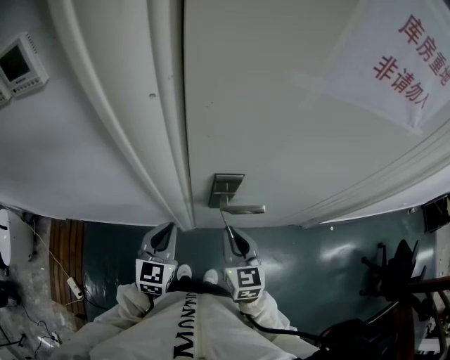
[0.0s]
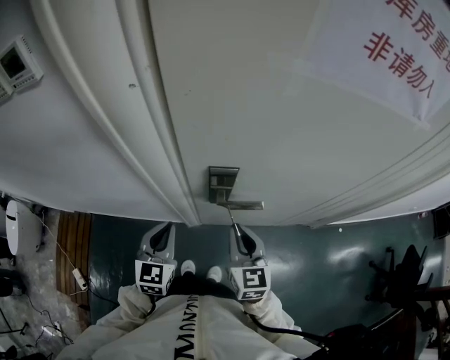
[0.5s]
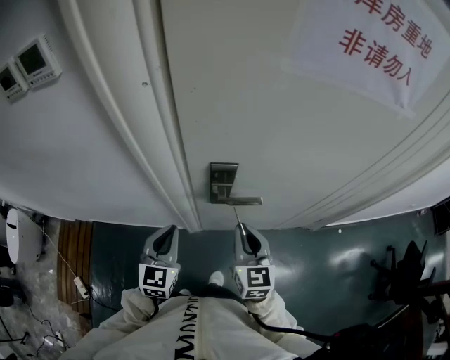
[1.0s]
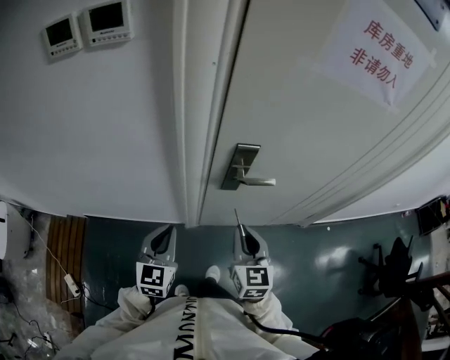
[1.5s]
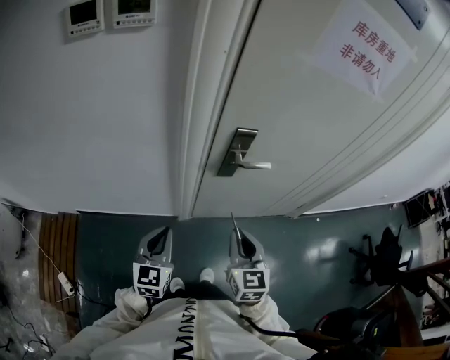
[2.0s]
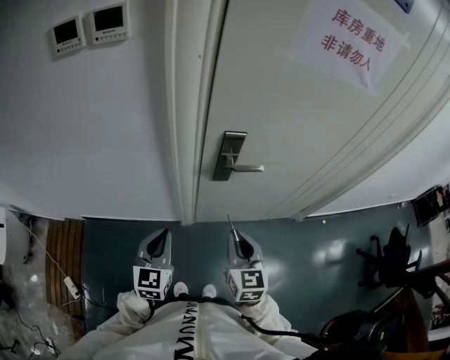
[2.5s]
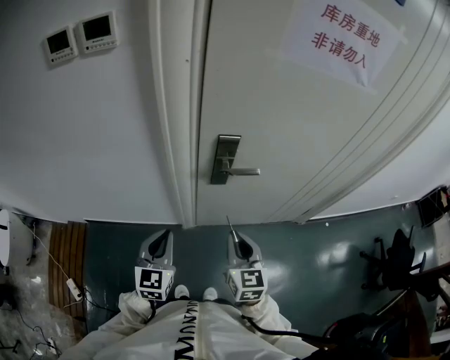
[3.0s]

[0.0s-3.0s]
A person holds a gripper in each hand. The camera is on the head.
0.0s to 1.5s: The right gripper goes some 10 cm backward. The left gripper shifts about 10 cm backward and to the left.
1.5s to 3.0s: The right gripper is displaced backward by some 5 cm; the left gripper changes place by about 5 cm.

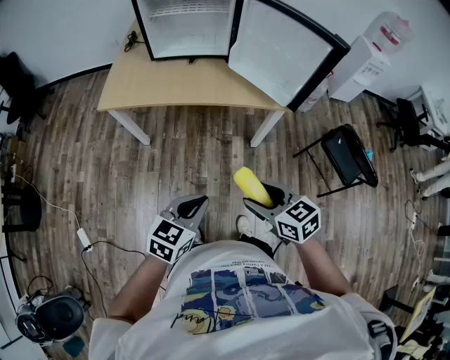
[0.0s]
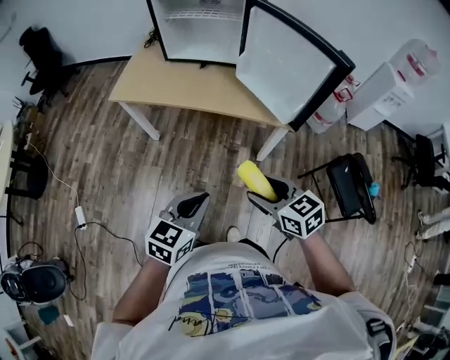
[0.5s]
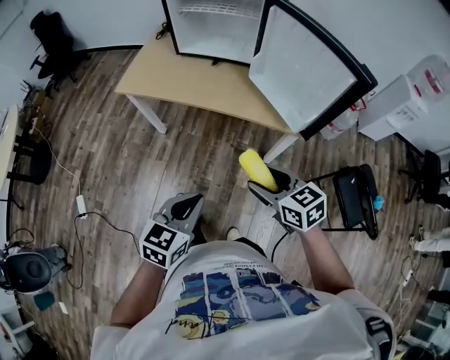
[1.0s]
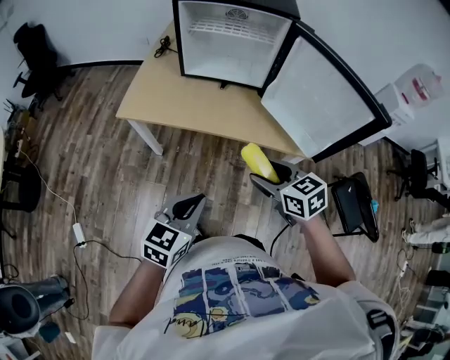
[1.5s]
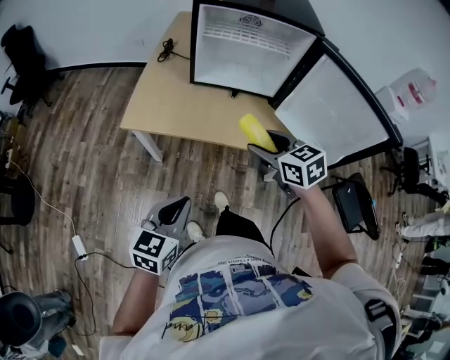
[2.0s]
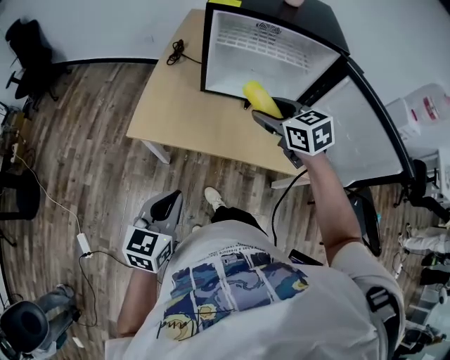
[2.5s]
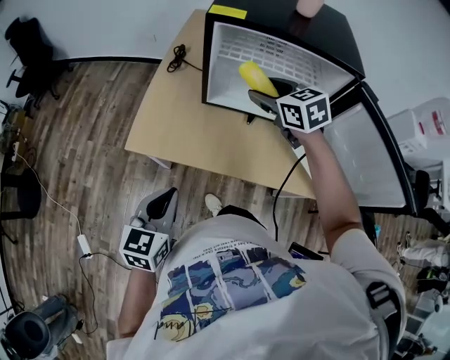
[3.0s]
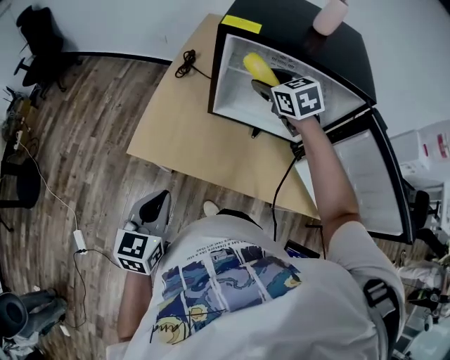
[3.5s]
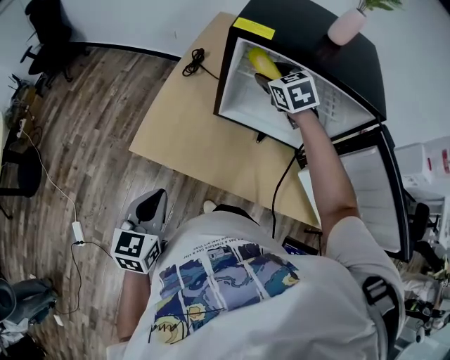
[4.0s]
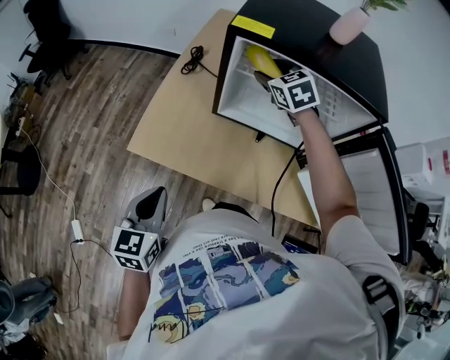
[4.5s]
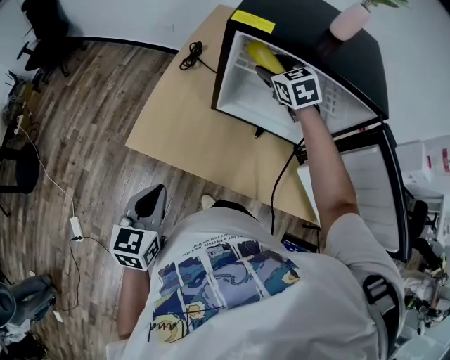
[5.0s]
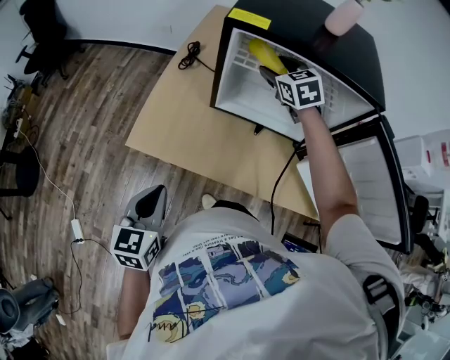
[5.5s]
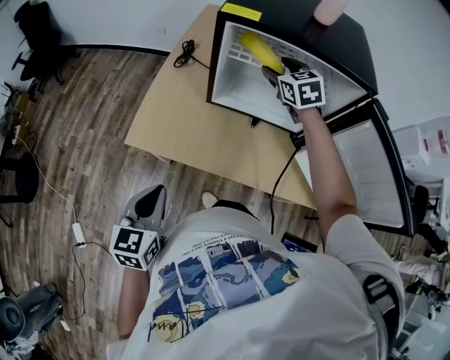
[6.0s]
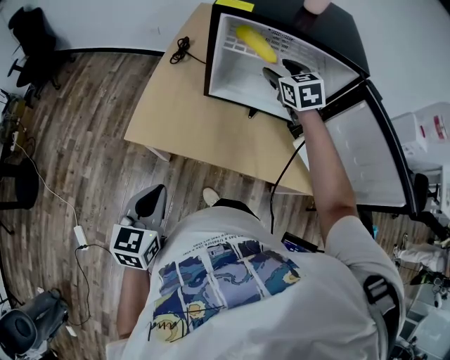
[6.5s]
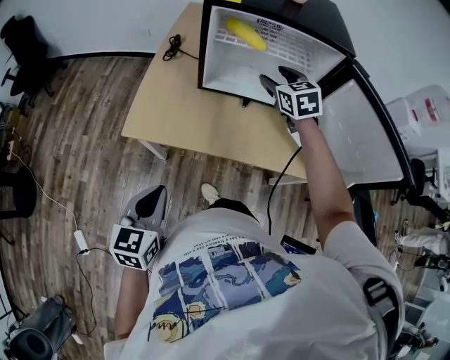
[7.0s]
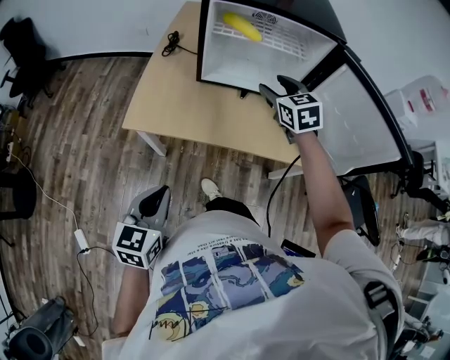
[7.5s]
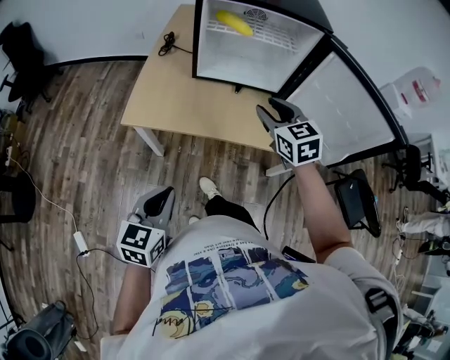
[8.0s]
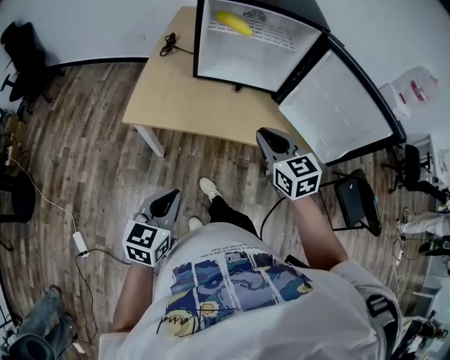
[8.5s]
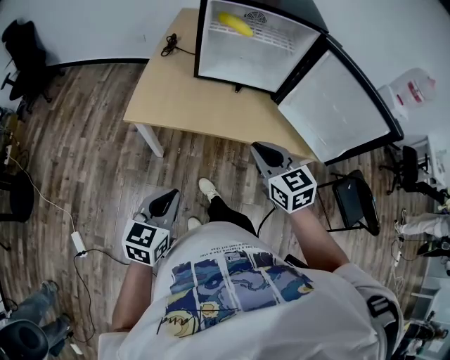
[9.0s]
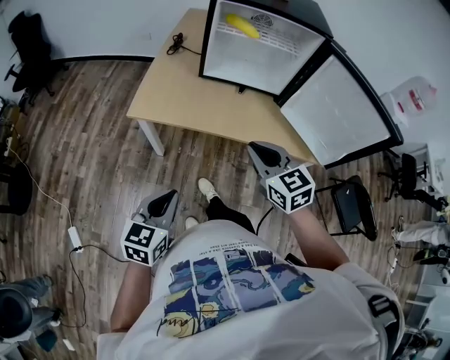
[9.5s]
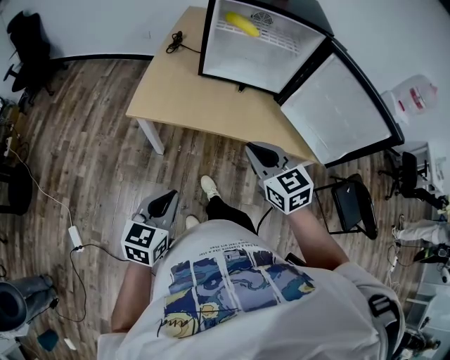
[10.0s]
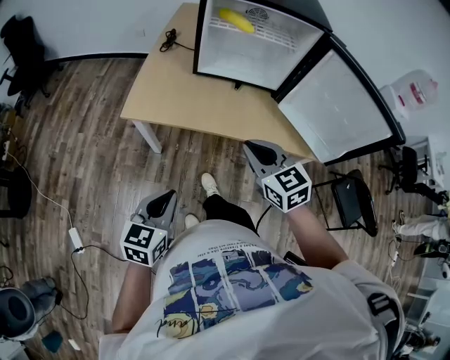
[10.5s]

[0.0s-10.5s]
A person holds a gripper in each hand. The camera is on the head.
0.0s to 2.0s: The left gripper is displaced forward and to the left by about 25 cm; the right gripper goes approximately 35 cm forward.
2.0s to 4.0s: The right gripper travels forward by about 40 cm, and swivels some 20 degrees. The left gripper heads forward, covering approximately 20 cm, and changes its angle by about 20 degrees.
4.0s to 6.5s: The left gripper goes about 5 cm backward. Meanwhile the right gripper goes roughly 10 cm backward and to the right.
6.5s to 8.5s: The right gripper travels backward by some 35 cm, and closes. The left gripper travels backward by about 15 cm.
8.5s to 10.5s: The right gripper changes place by about 5 cm.

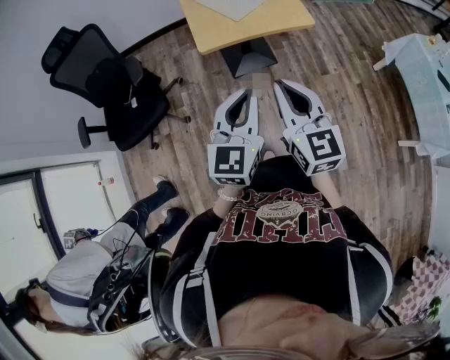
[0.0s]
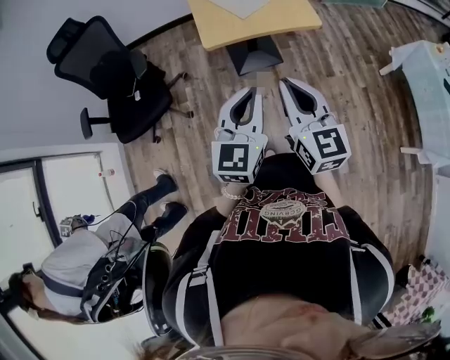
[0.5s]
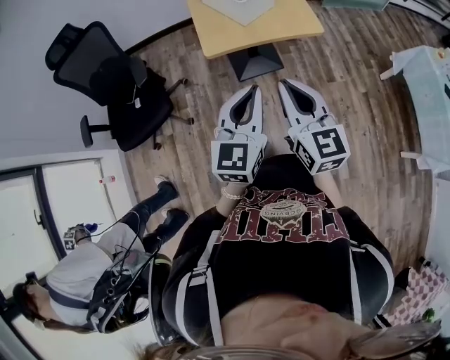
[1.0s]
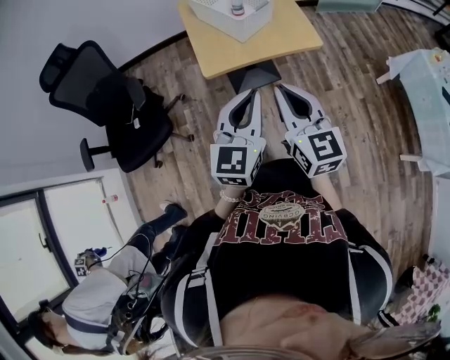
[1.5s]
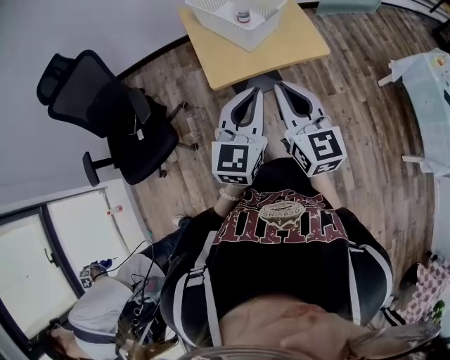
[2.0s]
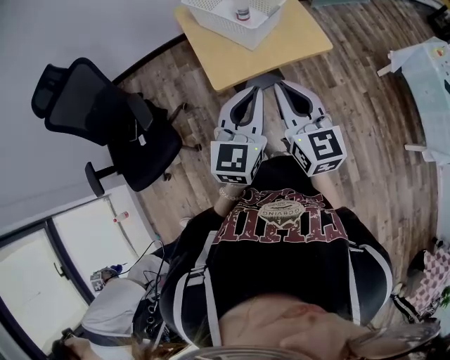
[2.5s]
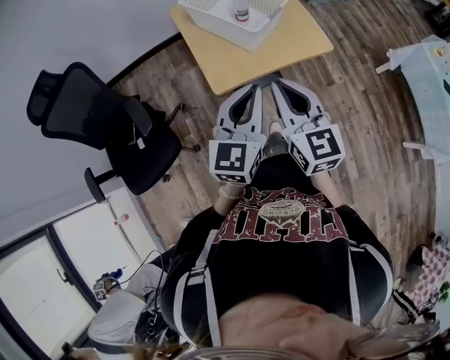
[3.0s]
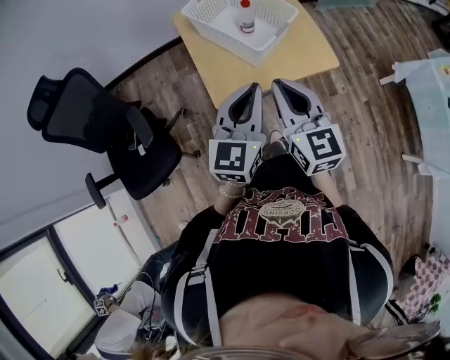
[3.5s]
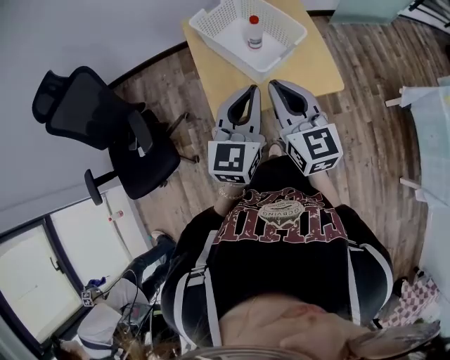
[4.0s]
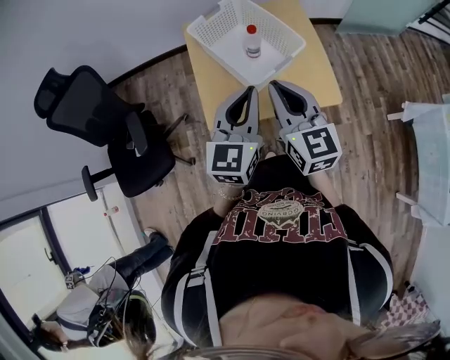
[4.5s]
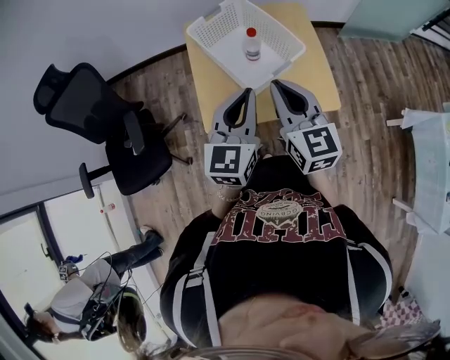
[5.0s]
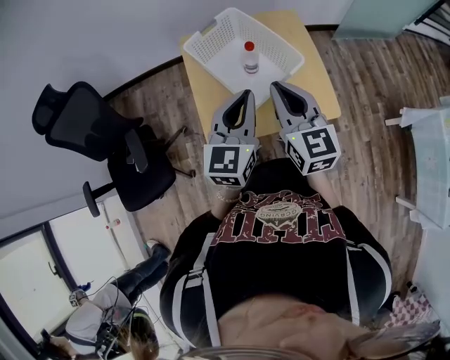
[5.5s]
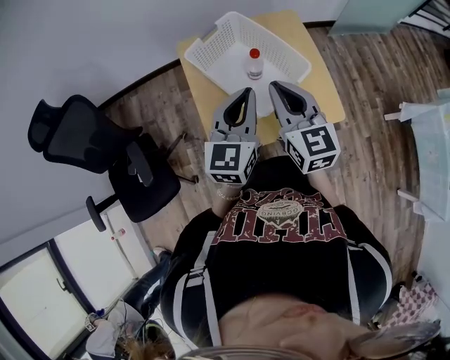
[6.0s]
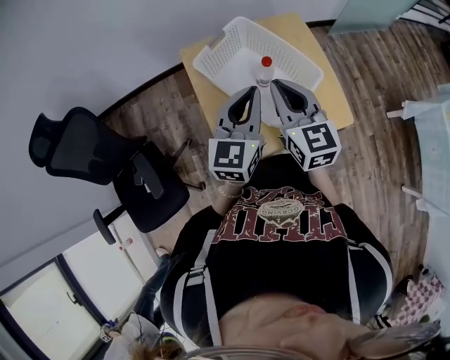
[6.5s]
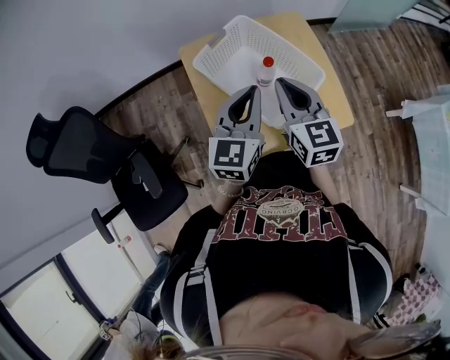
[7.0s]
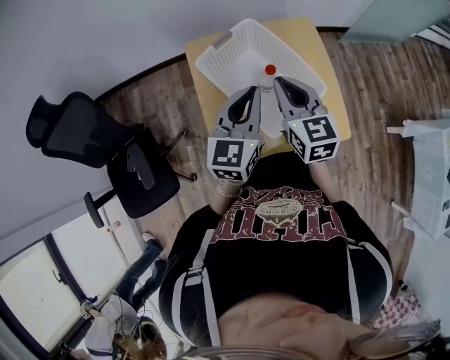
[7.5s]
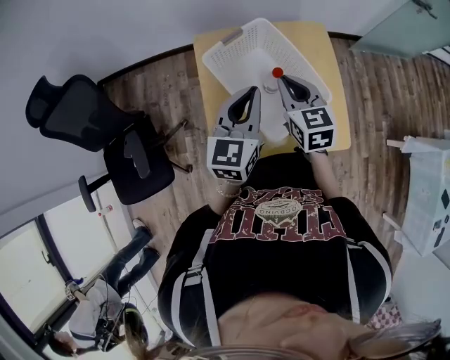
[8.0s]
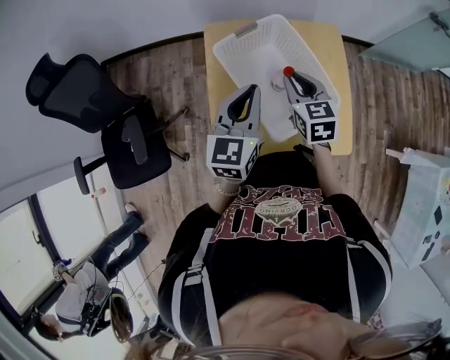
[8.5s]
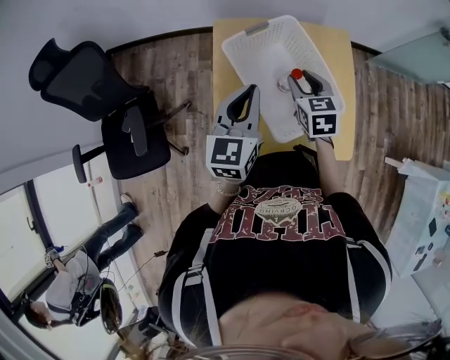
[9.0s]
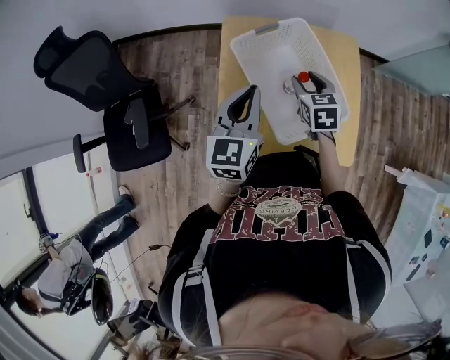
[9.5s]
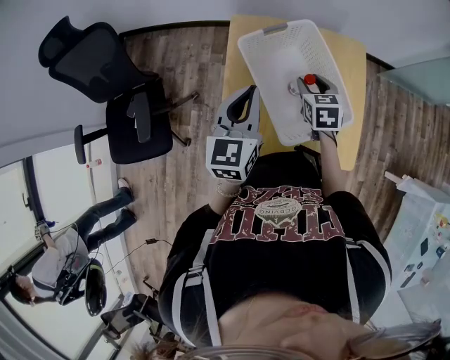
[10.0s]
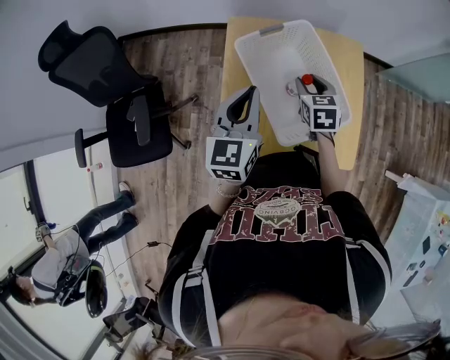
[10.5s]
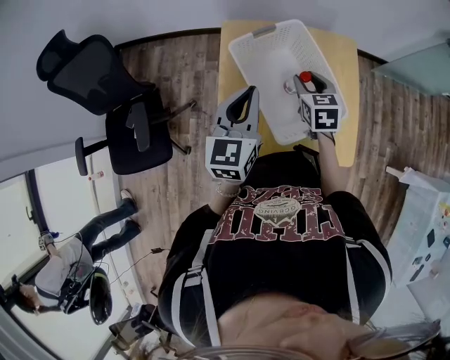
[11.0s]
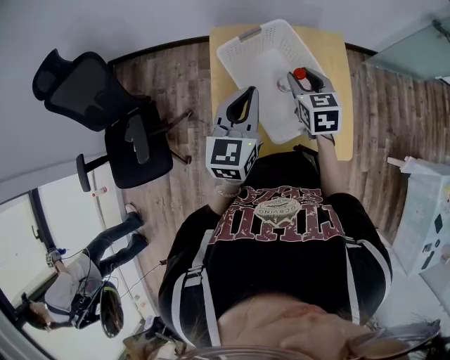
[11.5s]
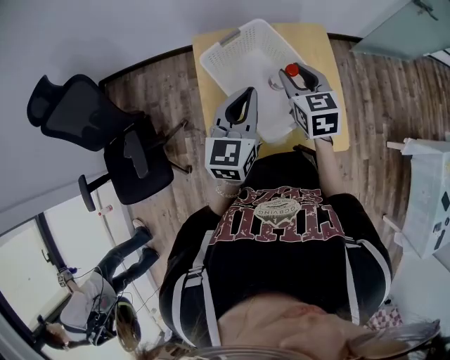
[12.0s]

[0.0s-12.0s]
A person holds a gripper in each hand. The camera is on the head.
0.0s to 2.0s: The two grippers go about 20 cm forward.
2.0s to 4.0s: The grippers both shift forward by some 20 cm.
4.0s to 6.0s: The grippers both shift forward by approximately 15 cm.
6.0s to 8.0s: The left gripper heads forward, covering about 10 cm. The right gripper shifts some 15 cm forward and downward.
8.0s to 10.0s: The right gripper travels downward by some 10 cm, and opens up. Meanwhile the left gripper is displaced to the left by about 5 cm.
10.0s to 12.0s: The right gripper goes roughly 10 cm upward. The left gripper goes approximately 5 cm to the right.

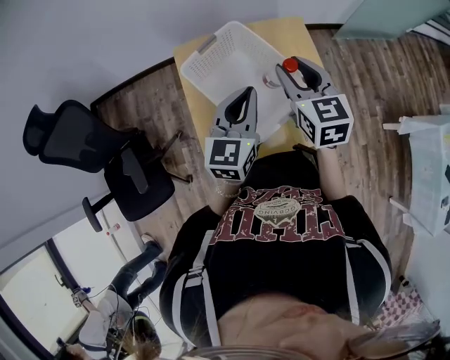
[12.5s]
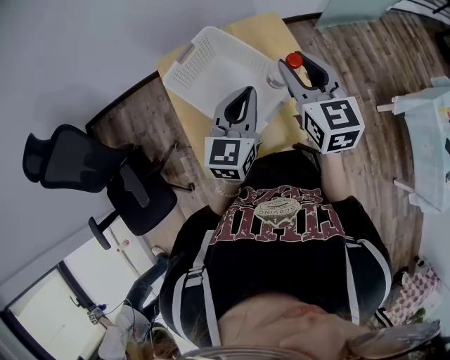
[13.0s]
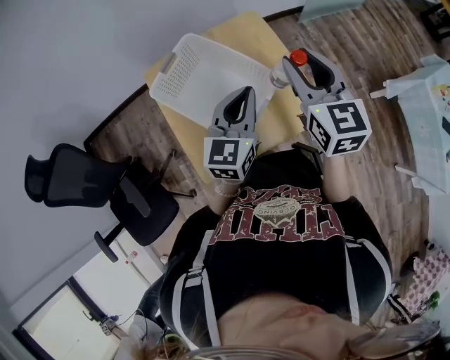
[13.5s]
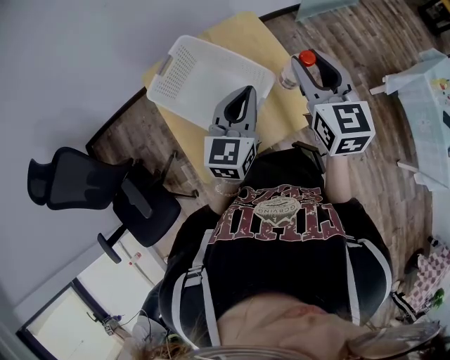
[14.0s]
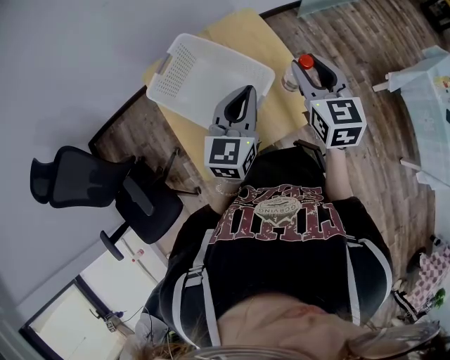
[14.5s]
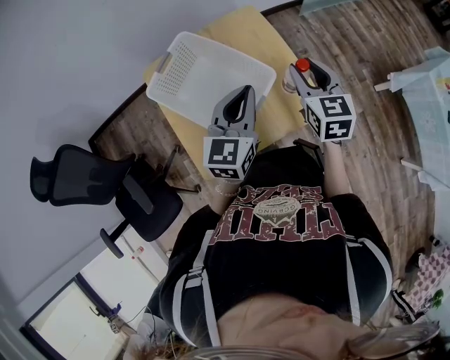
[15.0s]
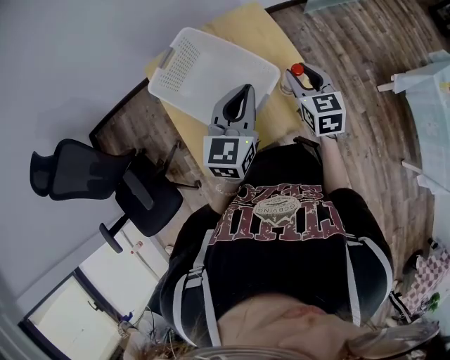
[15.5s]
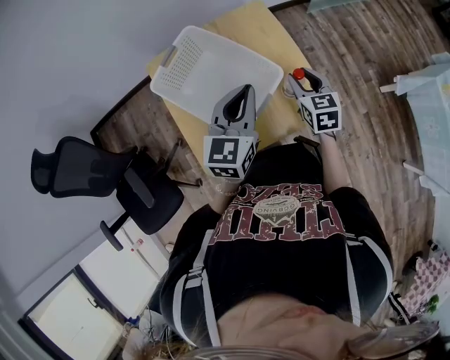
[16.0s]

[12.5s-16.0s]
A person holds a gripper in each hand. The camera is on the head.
12.5s to 14.5s: The grippers both shift to the right by about 15 cm.
14.5s to 16.0s: The right gripper goes some 15 cm downward.
